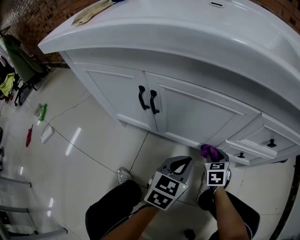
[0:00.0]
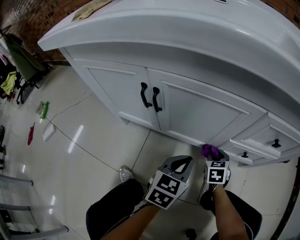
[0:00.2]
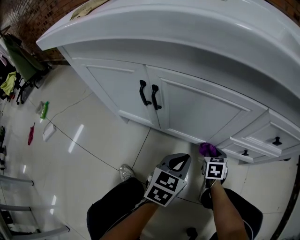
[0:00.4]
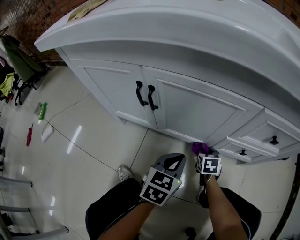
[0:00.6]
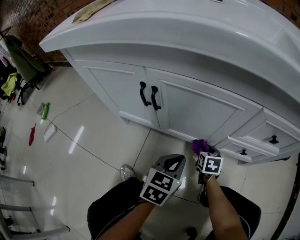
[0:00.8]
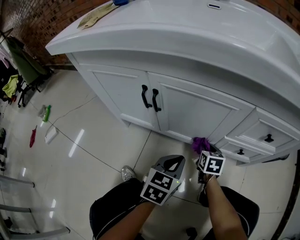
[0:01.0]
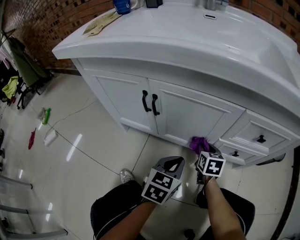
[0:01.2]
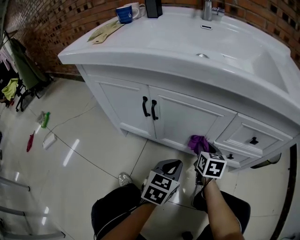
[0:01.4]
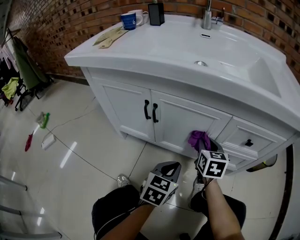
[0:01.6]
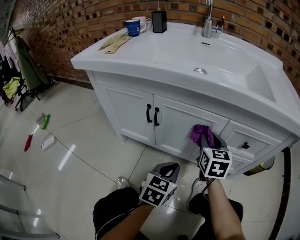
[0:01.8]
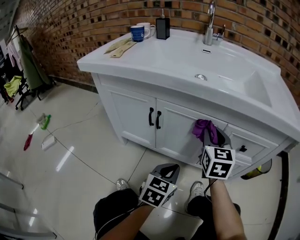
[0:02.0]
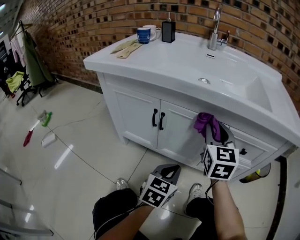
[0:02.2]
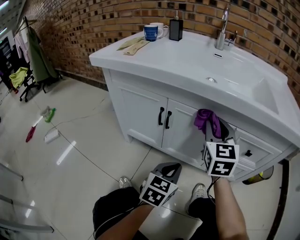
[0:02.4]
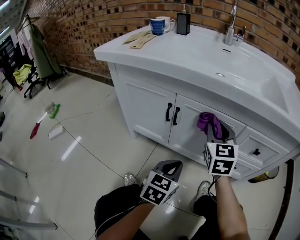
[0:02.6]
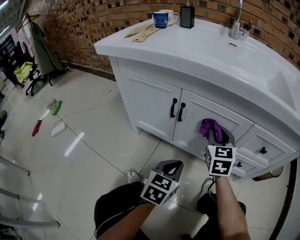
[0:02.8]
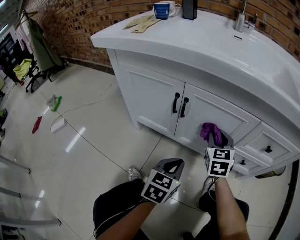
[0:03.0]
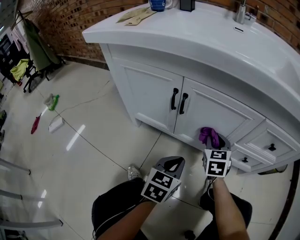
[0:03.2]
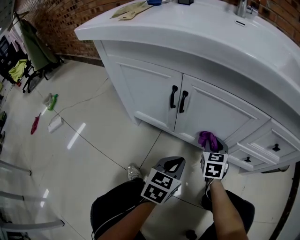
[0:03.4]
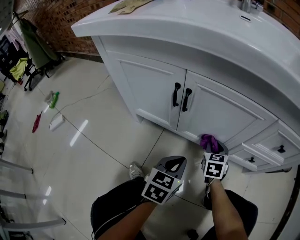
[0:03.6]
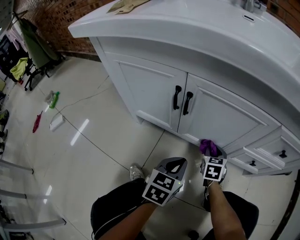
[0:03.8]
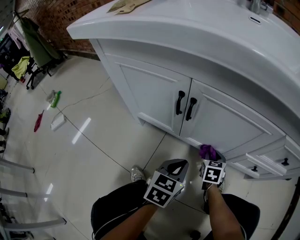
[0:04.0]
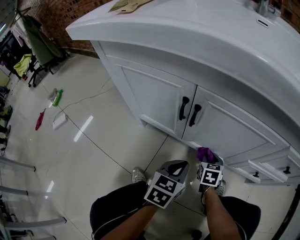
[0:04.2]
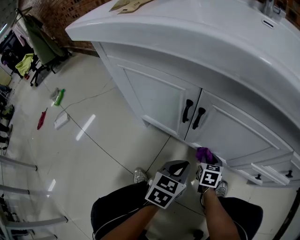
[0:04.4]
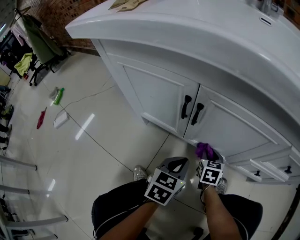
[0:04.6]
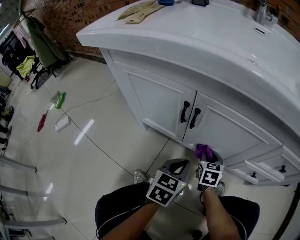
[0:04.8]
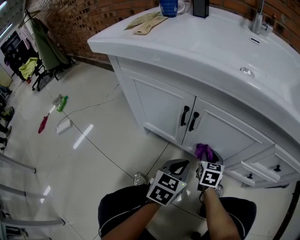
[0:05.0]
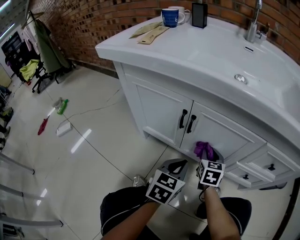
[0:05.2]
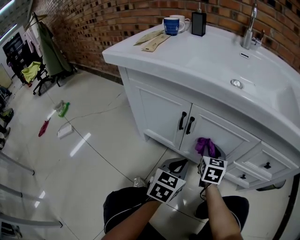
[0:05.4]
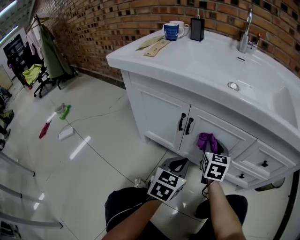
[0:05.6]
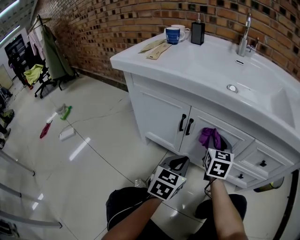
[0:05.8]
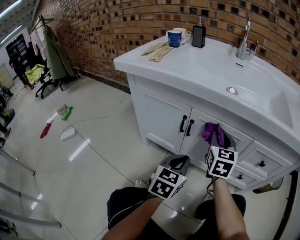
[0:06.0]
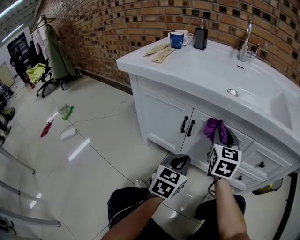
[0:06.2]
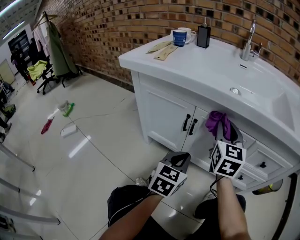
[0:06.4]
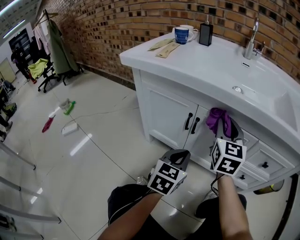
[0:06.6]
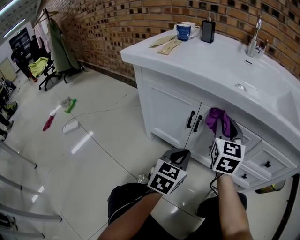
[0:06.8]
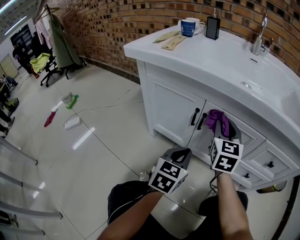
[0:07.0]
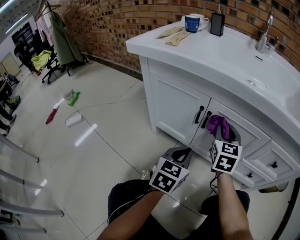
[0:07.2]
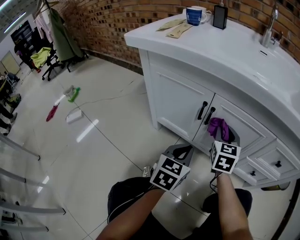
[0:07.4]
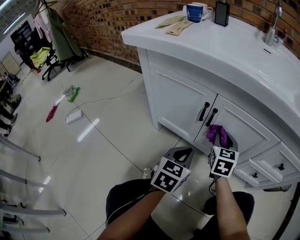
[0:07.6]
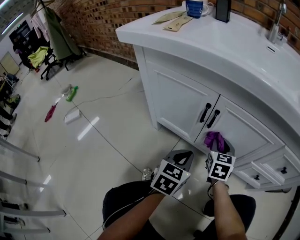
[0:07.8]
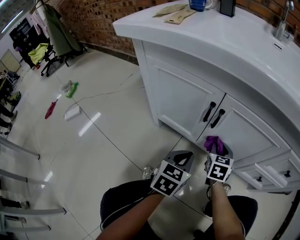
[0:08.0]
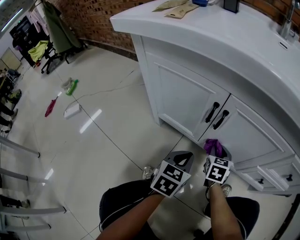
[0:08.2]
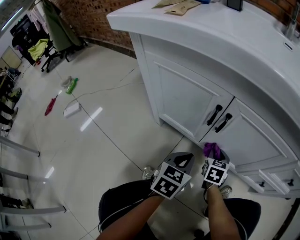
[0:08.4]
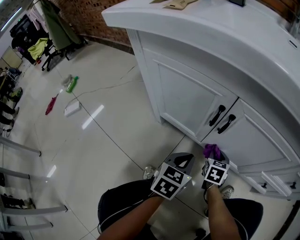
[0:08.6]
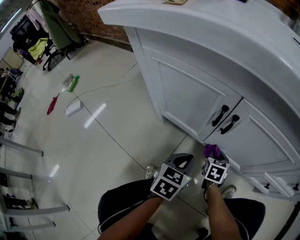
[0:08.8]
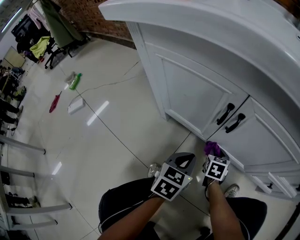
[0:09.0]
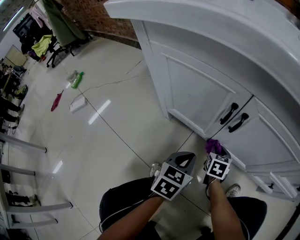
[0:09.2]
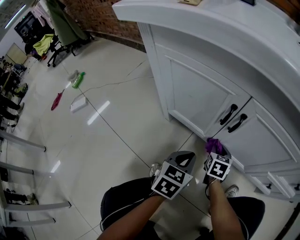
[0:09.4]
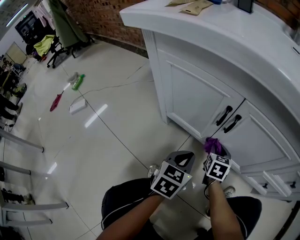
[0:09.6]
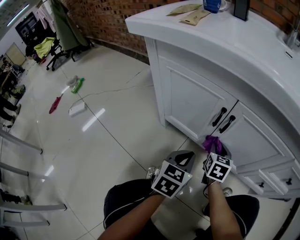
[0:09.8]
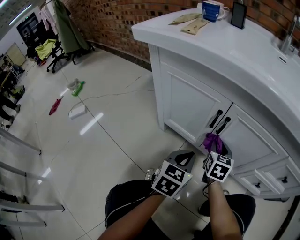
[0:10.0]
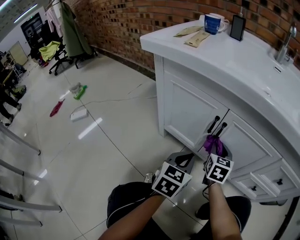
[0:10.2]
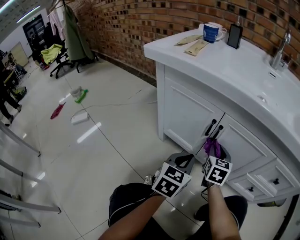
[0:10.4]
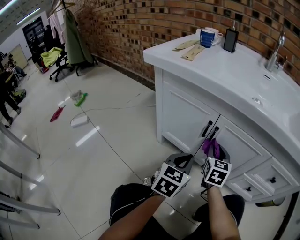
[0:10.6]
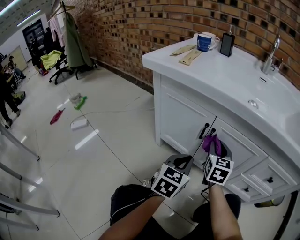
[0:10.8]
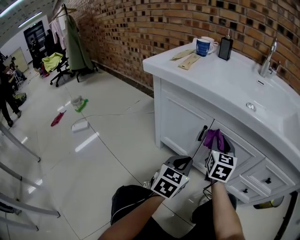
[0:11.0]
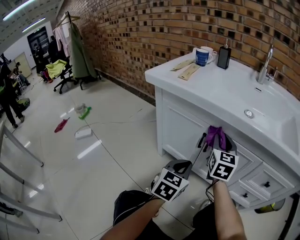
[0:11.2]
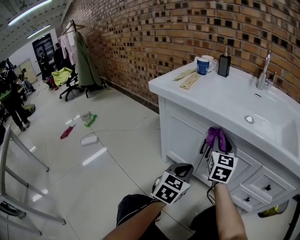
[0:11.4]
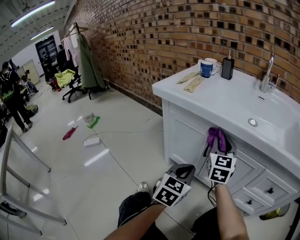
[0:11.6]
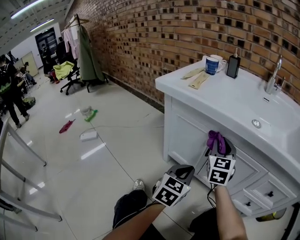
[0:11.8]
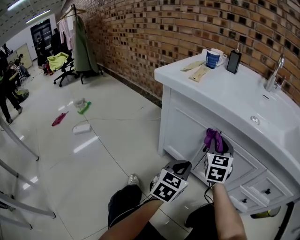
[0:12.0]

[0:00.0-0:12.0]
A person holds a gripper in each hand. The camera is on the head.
0:00.0 to 0:01.6: The left gripper shifts by some 5 cm; the right gripper travels upward by about 20 cm, and changes its angle by approximately 20 degrees.
0:01.6 to 0:03.0: Both grippers move to the left, about 5 cm. The right gripper moves approximately 20 cm upward and comes back, and changes its angle by about 20 degrees.
0:03.0 to 0:04.4: The left gripper travels downward and forward by approximately 10 cm. The right gripper is displaced downward by some 25 cm, and changes its angle by approximately 30 degrees.
0:04.4 to 0:06.0: The left gripper shifts some 15 cm upward. Meanwhile the right gripper travels upward by approximately 35 cm, and angles its fingers upward, by some 30 degrees.
0:06.0 to 0:07.6: The left gripper moves downward and to the left, roughly 10 cm, while the right gripper shifts about 10 cm downward.
0:07.6 to 0:09.0: The left gripper moves downward, some 10 cm, while the right gripper heads downward, covering about 25 cm, and rotates some 30 degrees.
0:09.0 to 0:10.4: The left gripper is displaced upward by approximately 15 cm. The right gripper goes approximately 25 cm upward, and swivels roughly 20 degrees.
0:10.4 to 0:12.0: The right gripper travels upward by about 15 cm, and turns by some 20 degrees.

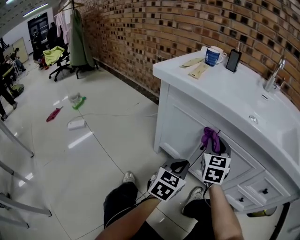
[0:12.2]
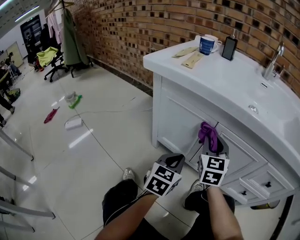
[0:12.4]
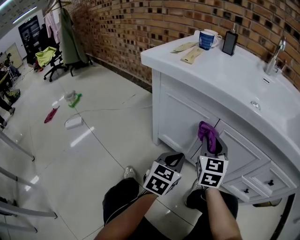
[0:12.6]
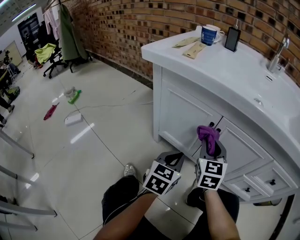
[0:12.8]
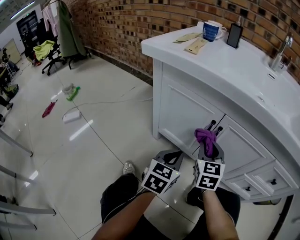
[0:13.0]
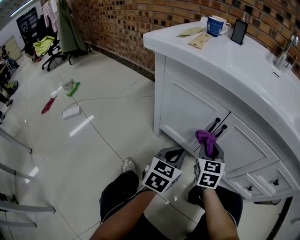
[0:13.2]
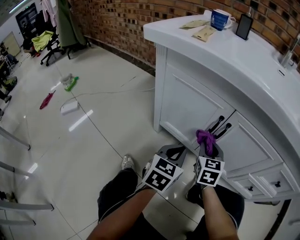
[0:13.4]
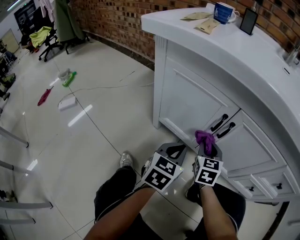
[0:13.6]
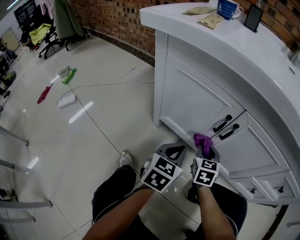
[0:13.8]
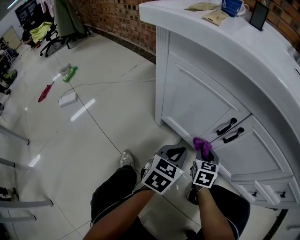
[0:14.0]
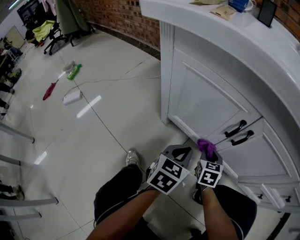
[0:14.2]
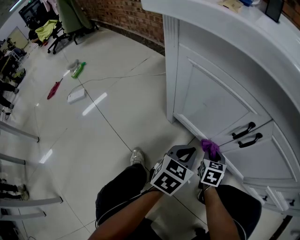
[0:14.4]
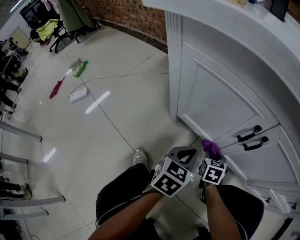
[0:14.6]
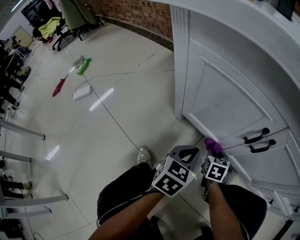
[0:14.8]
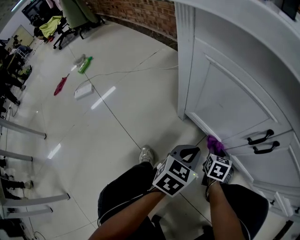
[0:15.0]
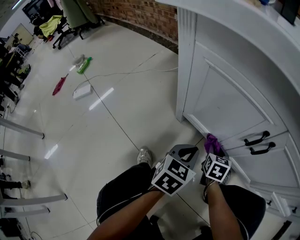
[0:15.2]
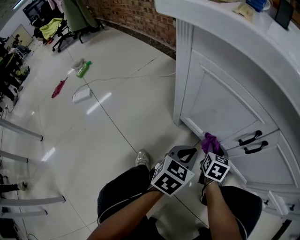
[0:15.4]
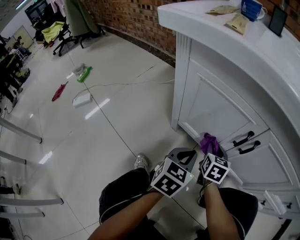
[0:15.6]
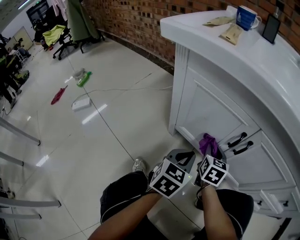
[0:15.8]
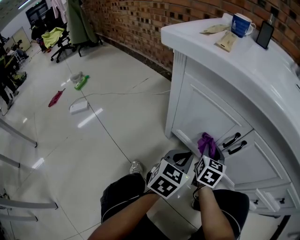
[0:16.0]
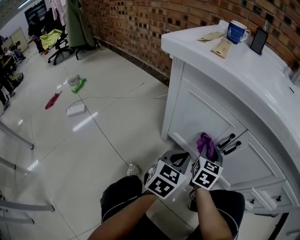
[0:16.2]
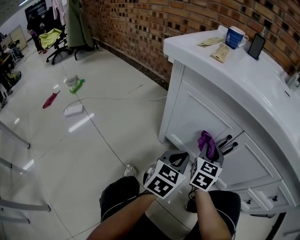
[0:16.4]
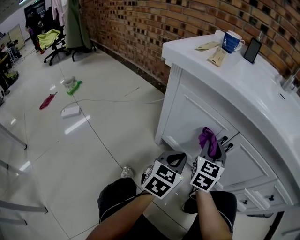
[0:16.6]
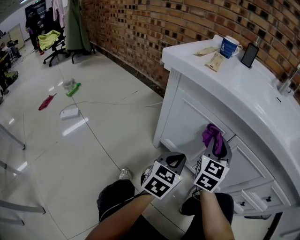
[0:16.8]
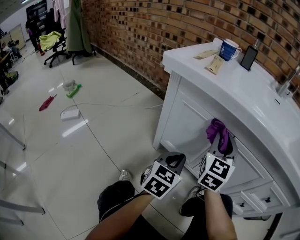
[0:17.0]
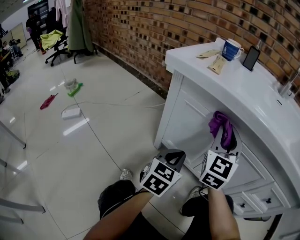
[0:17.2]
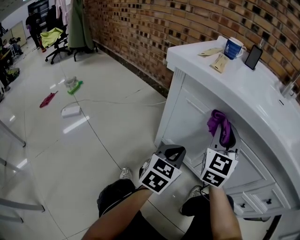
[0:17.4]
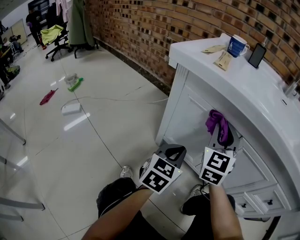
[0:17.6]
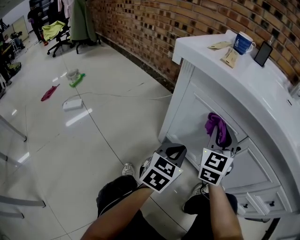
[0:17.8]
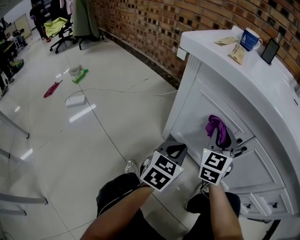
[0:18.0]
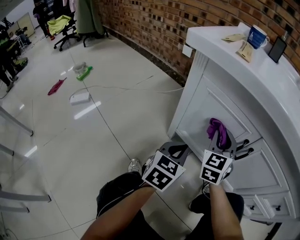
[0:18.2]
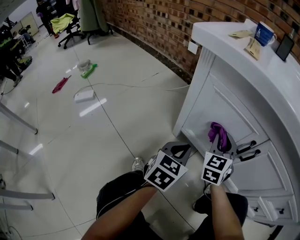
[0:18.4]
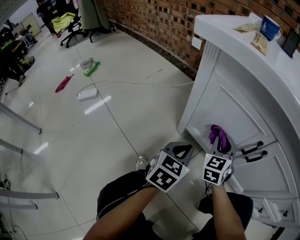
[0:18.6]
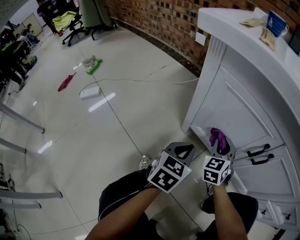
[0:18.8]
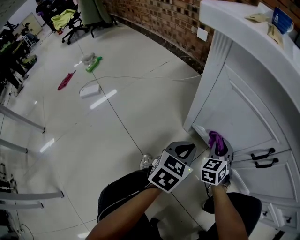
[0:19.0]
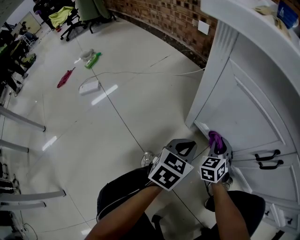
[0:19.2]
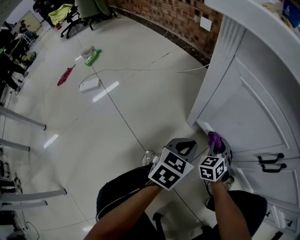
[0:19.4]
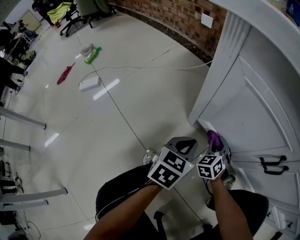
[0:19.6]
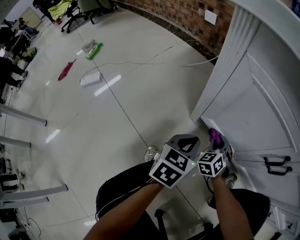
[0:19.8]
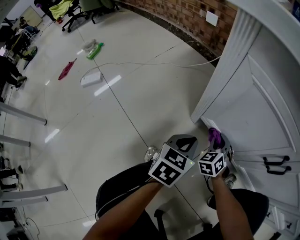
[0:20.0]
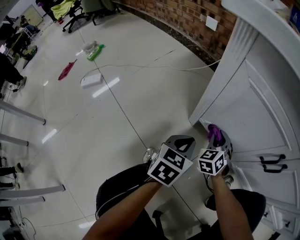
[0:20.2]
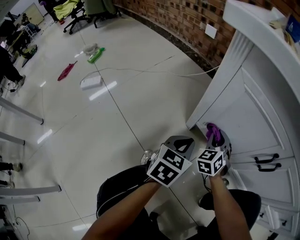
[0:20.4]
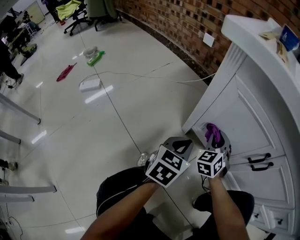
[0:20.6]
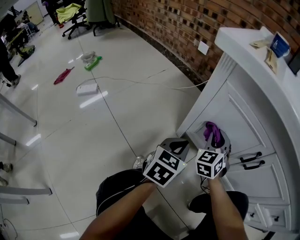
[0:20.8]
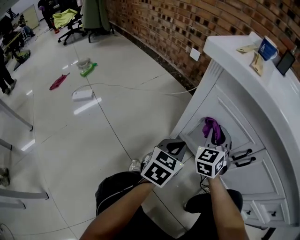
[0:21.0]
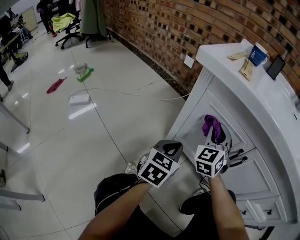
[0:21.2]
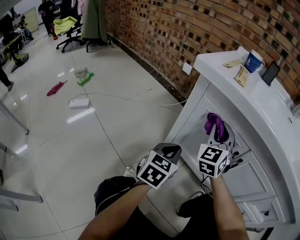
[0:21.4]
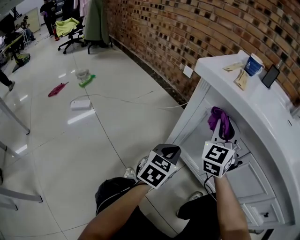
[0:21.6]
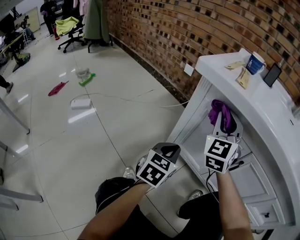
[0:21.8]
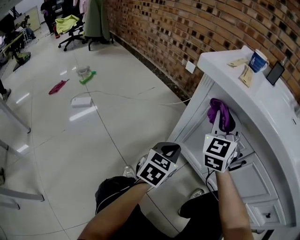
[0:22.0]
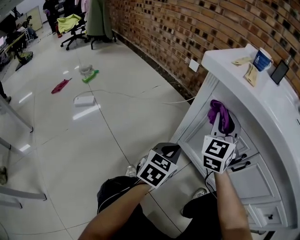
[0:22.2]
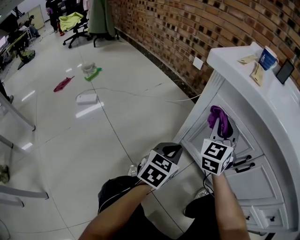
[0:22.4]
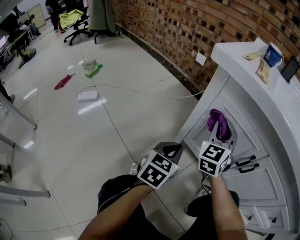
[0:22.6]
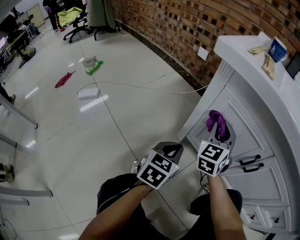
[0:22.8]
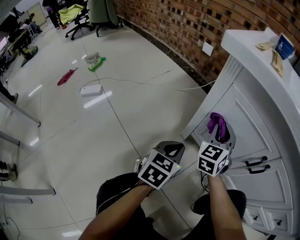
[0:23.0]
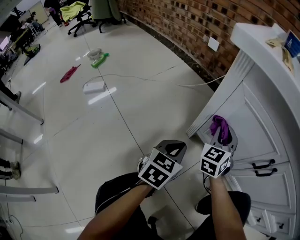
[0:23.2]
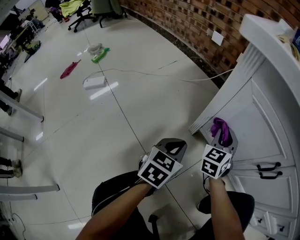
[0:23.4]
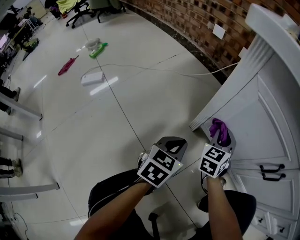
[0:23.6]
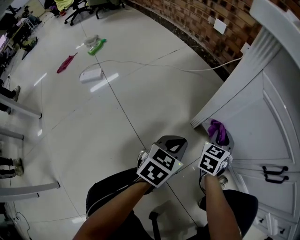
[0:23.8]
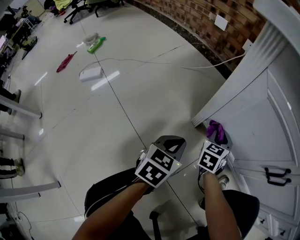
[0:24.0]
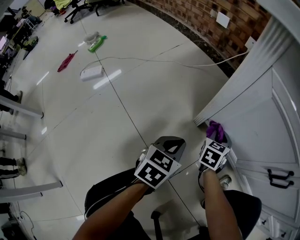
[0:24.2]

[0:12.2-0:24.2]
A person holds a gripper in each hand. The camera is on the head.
0:12.2 to 0:13.8: The left gripper is displaced downward by some 10 cm, while the right gripper travels downward by roughly 25 cm, and rotates about 20 degrees.
0:13.8 to 0:15.2: The left gripper moves downward, roughly 5 cm, while the right gripper is displaced downward by roughly 10 cm.
0:15.2 to 0:16.6: The right gripper is displaced upward by some 30 cm, and tilts its fingers some 30 degrees upward. The left gripper is displaced upward by roughly 15 cm.
0:16.6 to 0:18.2: The two grippers go approximately 5 cm to the left. The right gripper moves some 15 cm upward and comes back.
0:18.2 to 0:19.8: The left gripper heads downward and to the left, covering about 10 cm, while the right gripper is displaced downward by some 30 cm, and turns by some 30 degrees.
0:19.8 to 0:21.2: The right gripper goes about 30 cm upward, and tilts its fingers about 30 degrees upward. The left gripper is displaced upward by about 15 cm.
0:21.2 to 0:22.6: The right gripper travels upward and back again, roughly 10 cm each way.
0:22.6 to 0:24.2: The right gripper travels downward by some 30 cm, and tilts its fingers approximately 30 degrees downward; the left gripper heads downward, covering roughly 15 cm.
